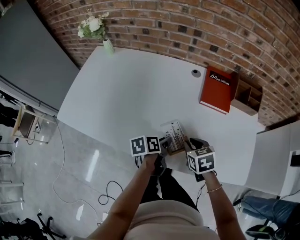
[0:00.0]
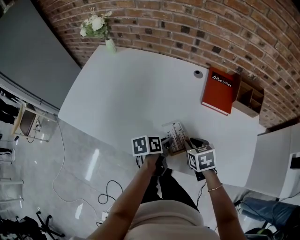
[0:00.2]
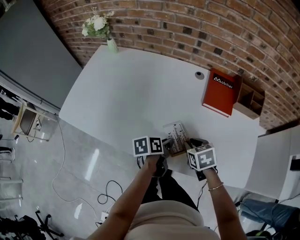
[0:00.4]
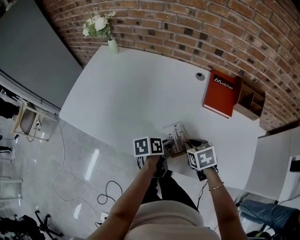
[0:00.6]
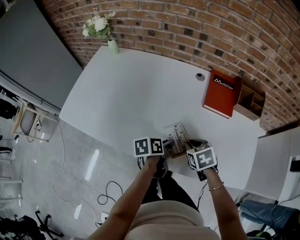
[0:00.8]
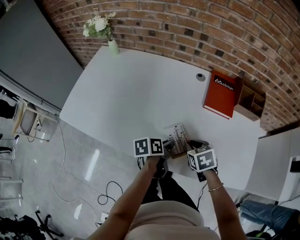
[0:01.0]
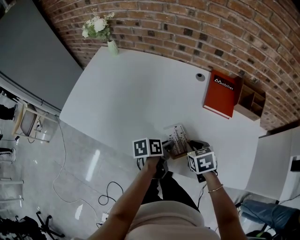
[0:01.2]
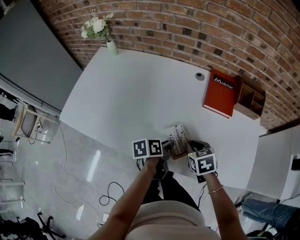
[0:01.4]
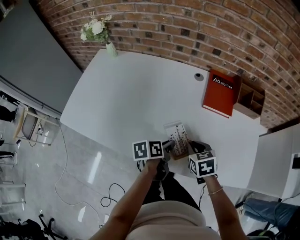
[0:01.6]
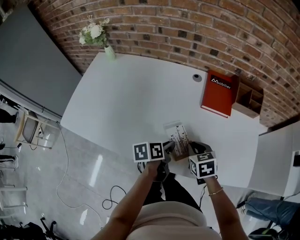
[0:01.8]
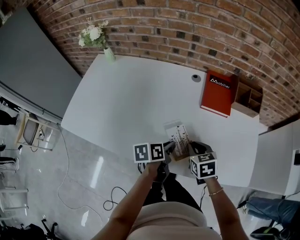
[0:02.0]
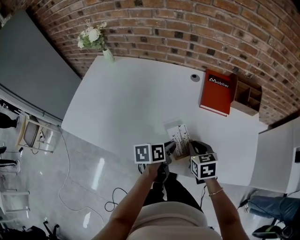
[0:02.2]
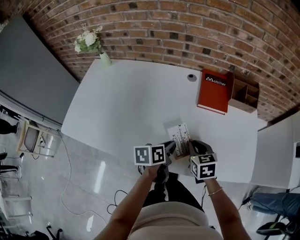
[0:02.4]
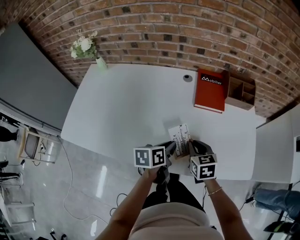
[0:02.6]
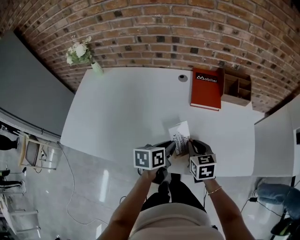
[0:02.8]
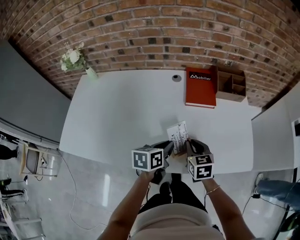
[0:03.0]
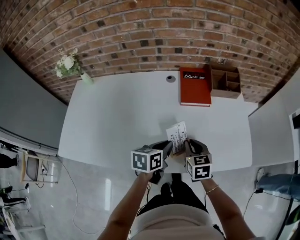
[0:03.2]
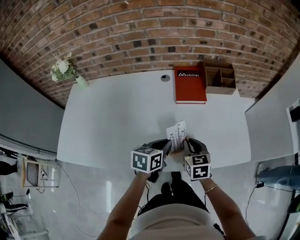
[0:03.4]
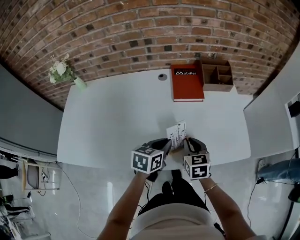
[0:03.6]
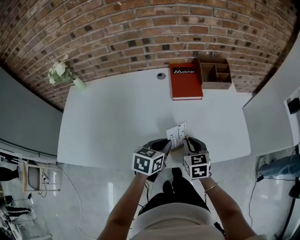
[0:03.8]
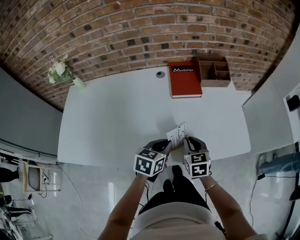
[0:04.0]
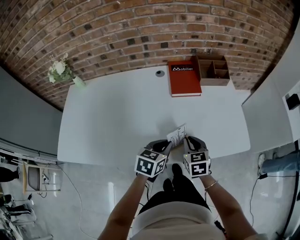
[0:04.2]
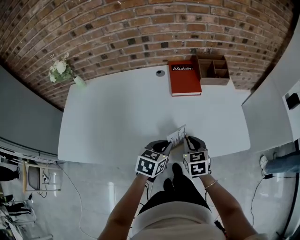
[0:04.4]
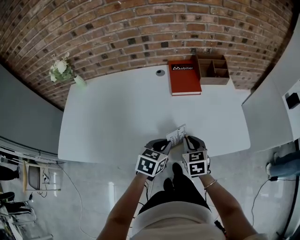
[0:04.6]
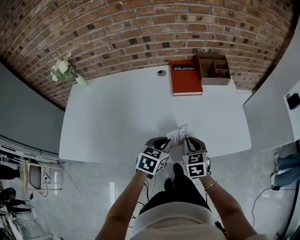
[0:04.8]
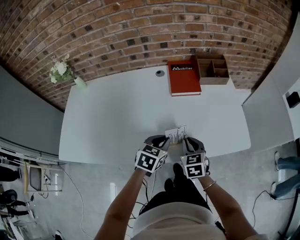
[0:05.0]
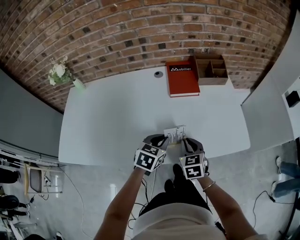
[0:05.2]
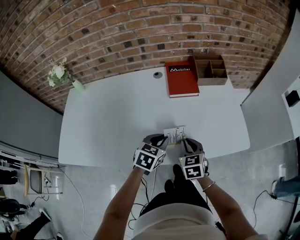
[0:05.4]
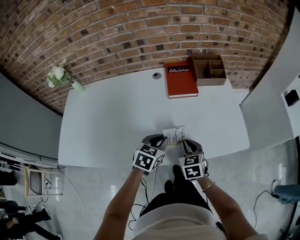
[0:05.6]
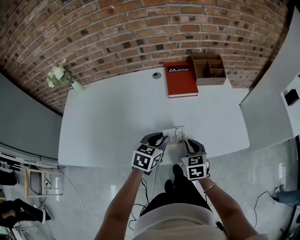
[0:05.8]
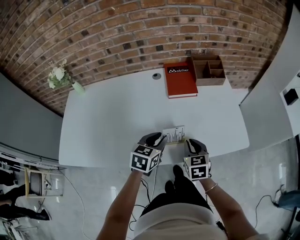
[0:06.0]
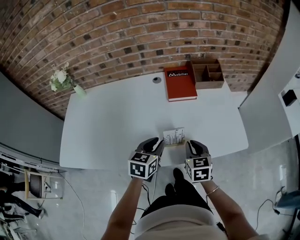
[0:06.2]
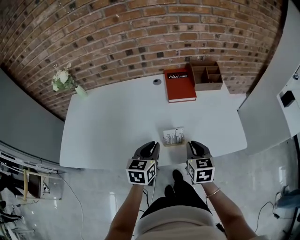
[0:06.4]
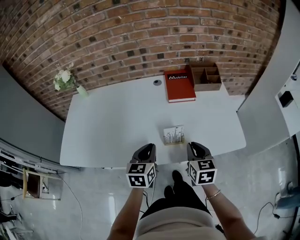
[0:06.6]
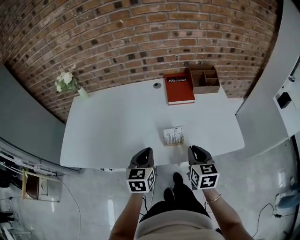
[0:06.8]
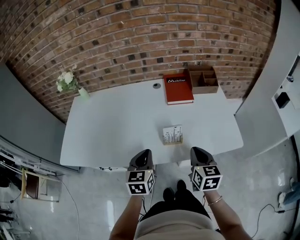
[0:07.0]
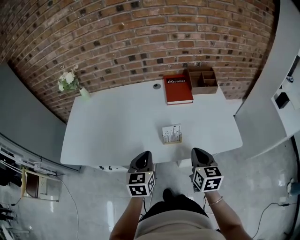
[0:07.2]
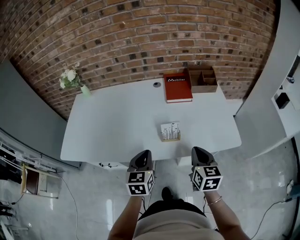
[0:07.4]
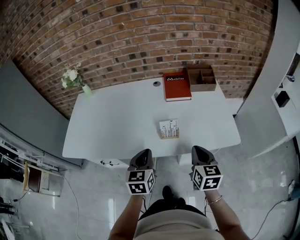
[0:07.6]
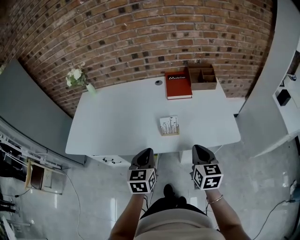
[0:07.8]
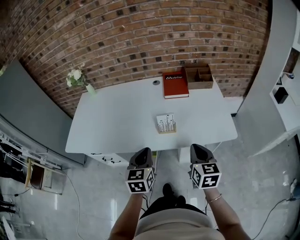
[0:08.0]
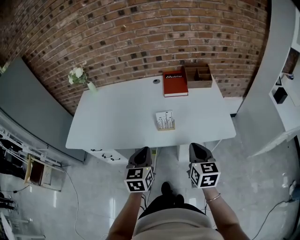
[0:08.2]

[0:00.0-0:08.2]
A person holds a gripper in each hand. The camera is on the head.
0:00.0 to 0:01.6: The grippers move only a little.
0:01.6 to 0:03.2: The left gripper moves upward and to the right, roughly 5 cm, and rotates approximately 40 degrees; the right gripper shifts by approximately 5 cm, and turns by some 30 degrees.
0:03.2 to 0:05.0: The right gripper ends up some 5 cm from where it was. The left gripper swivels roughly 30 degrees.
0:05.0 to 0:06.6: The right gripper is displaced upward by some 5 cm; the left gripper travels to the left and upward by approximately 10 cm, and swivels roughly 30 degrees.
0:06.6 to 0:08.2: The right gripper shifts some 15 cm backward and to the right. The left gripper is displaced backward by approximately 15 cm.

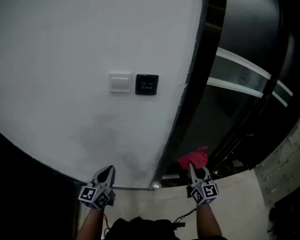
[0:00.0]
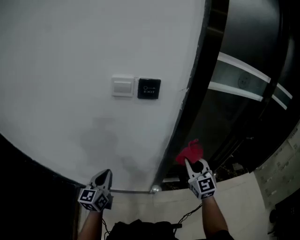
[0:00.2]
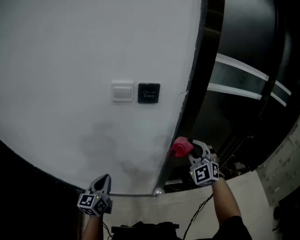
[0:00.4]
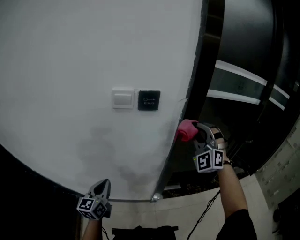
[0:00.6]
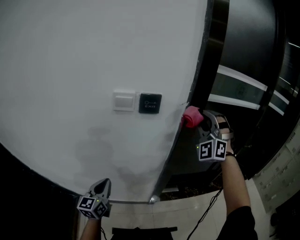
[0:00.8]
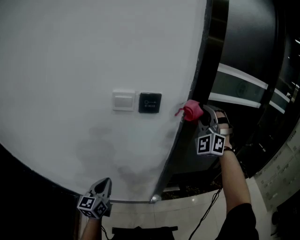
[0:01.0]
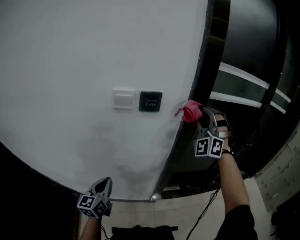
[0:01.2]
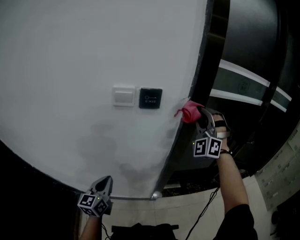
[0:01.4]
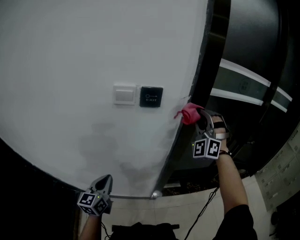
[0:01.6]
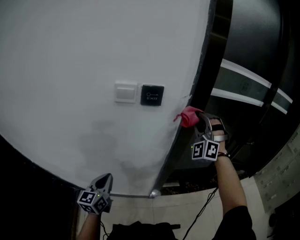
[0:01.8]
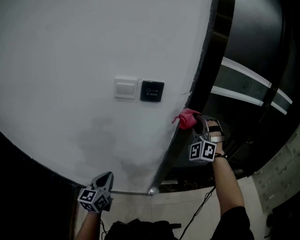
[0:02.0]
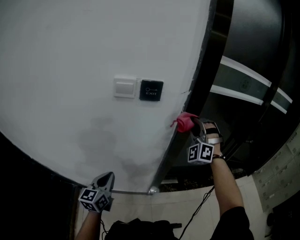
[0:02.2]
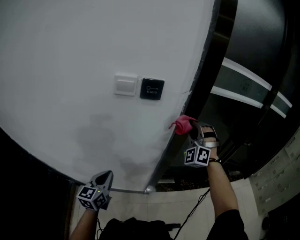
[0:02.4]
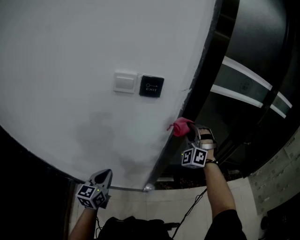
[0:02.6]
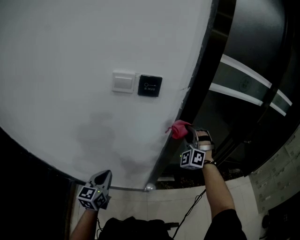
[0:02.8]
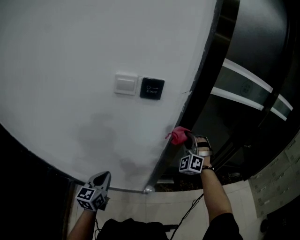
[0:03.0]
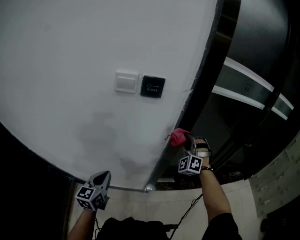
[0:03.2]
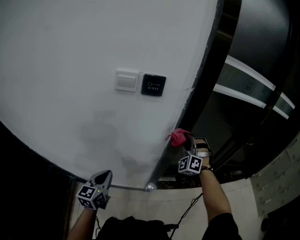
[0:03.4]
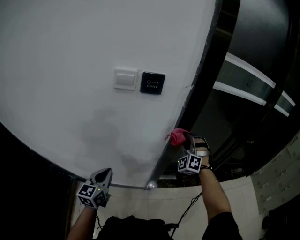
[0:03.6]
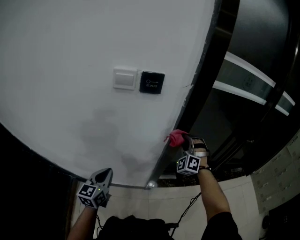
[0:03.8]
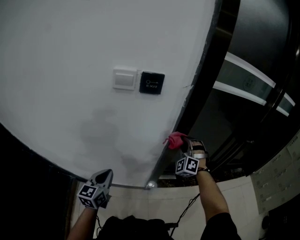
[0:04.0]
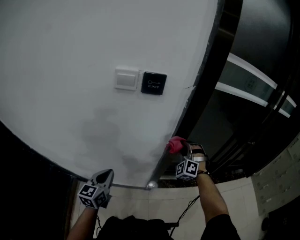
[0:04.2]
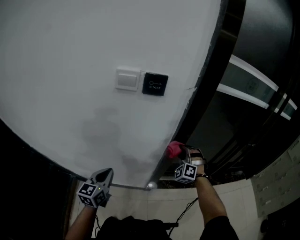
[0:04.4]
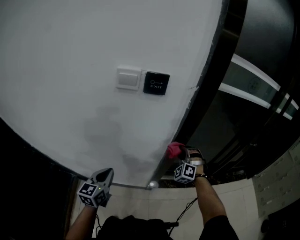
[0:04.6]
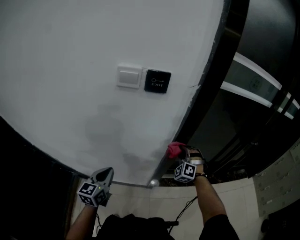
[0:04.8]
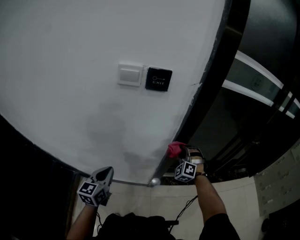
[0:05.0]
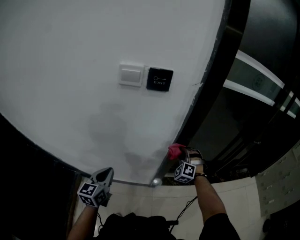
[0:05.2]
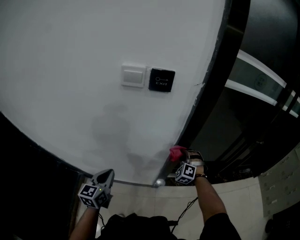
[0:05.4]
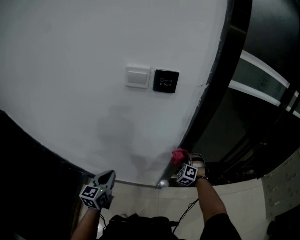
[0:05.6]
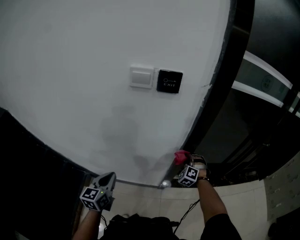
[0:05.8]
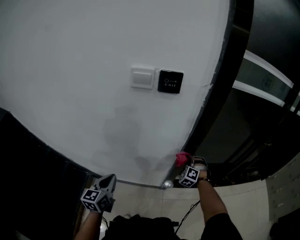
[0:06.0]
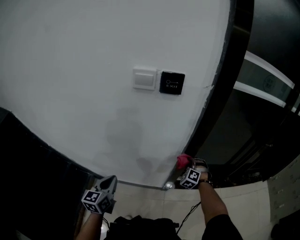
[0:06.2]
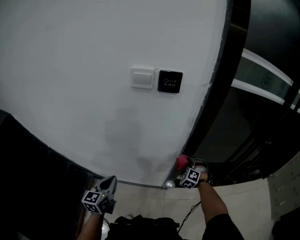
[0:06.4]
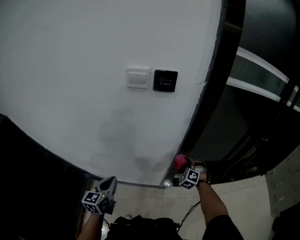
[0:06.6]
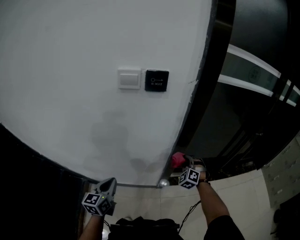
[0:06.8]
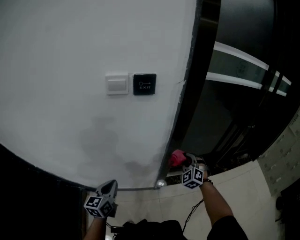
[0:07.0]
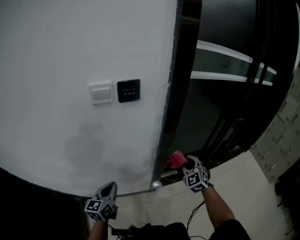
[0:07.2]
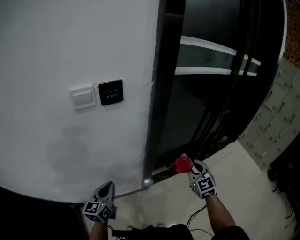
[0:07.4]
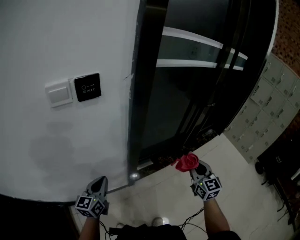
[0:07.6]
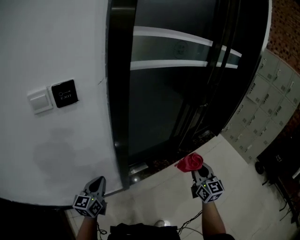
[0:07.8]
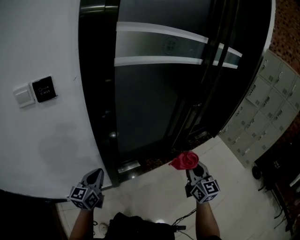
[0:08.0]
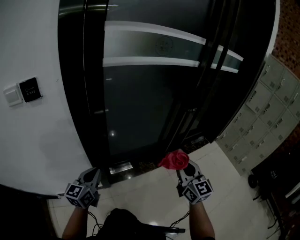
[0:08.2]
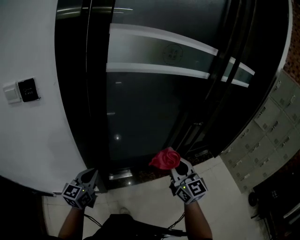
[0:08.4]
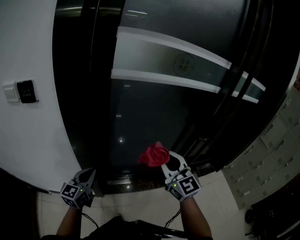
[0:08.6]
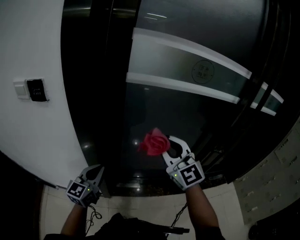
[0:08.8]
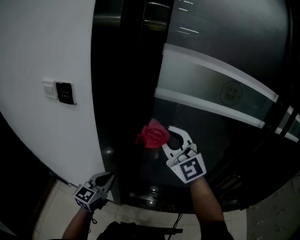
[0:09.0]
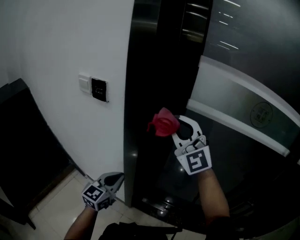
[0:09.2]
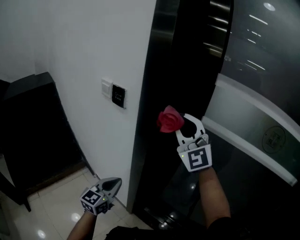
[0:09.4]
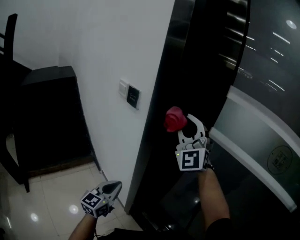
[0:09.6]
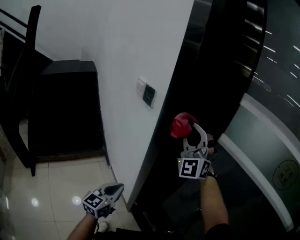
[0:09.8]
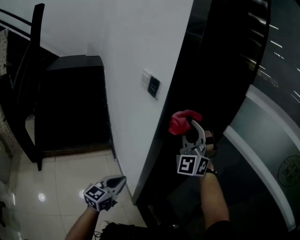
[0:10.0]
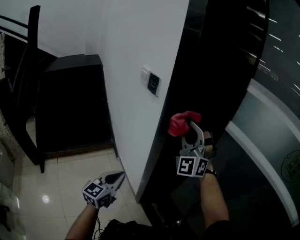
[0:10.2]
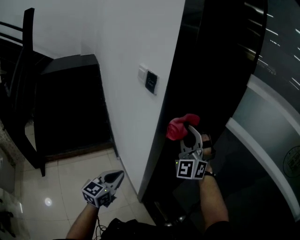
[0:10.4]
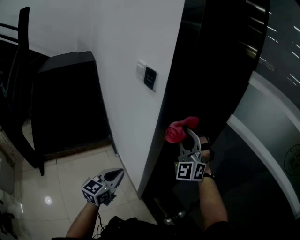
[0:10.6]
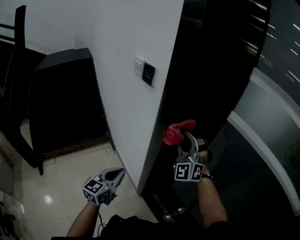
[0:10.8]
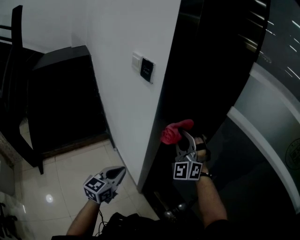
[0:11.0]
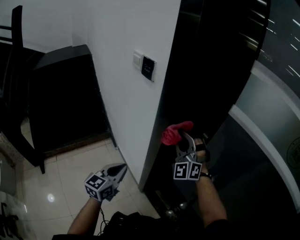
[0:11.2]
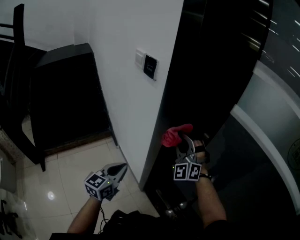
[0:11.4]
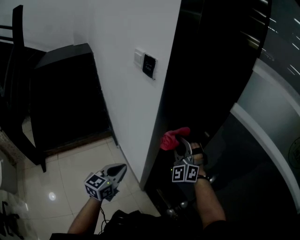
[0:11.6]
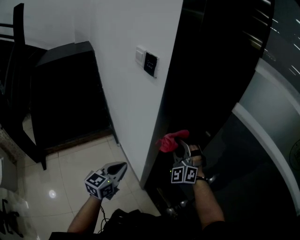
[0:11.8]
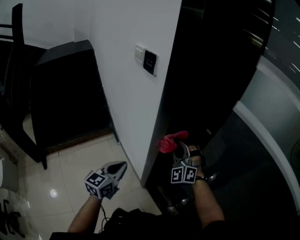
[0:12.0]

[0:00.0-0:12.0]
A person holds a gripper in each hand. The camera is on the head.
0:00.0 to 0:01.6: The right gripper is displaced upward and forward by roughly 25 cm, and twists some 80 degrees counterclockwise, seen from behind.
0:01.6 to 0:03.0: The right gripper travels downward by some 15 cm.
0:03.0 to 0:04.4: The right gripper goes about 10 cm downward.
0:04.4 to 0:06.0: The right gripper shifts about 10 cm downward, while the left gripper moves roughly 5 cm.
0:06.0 to 0:07.6: The left gripper travels to the right and forward by roughly 15 cm, and swivels about 30 degrees; the right gripper moves to the right, backward and upward, roughly 30 cm, and twists approximately 70 degrees clockwise, seen from behind.
0:07.6 to 0:09.0: The left gripper ends up about 30 cm from where it was, and changes its angle by roughly 20 degrees. Meanwhile the right gripper shifts by roughly 35 cm, and changes its angle by about 70 degrees.
0:09.0 to 0:10.4: The left gripper ends up about 10 cm from where it was, and rotates some 50 degrees. Meanwhile the right gripper reaches roughly 10 cm upward, then returns, and swivels about 40 degrees.
0:10.4 to 0:12.0: The right gripper is displaced downward by approximately 20 cm, and changes its angle by some 20 degrees.

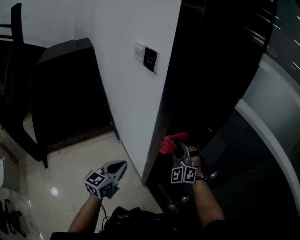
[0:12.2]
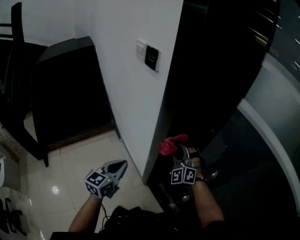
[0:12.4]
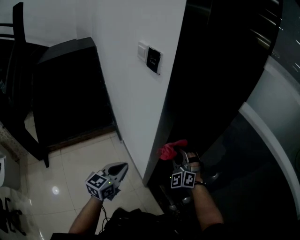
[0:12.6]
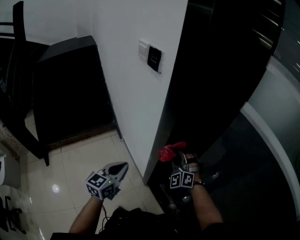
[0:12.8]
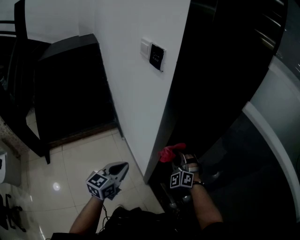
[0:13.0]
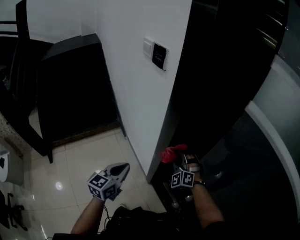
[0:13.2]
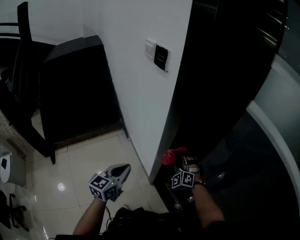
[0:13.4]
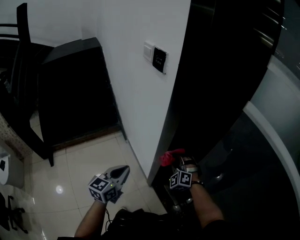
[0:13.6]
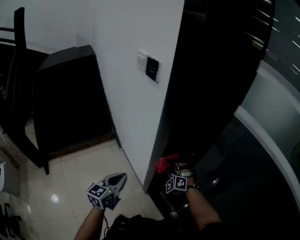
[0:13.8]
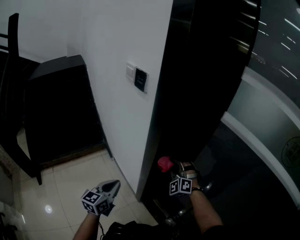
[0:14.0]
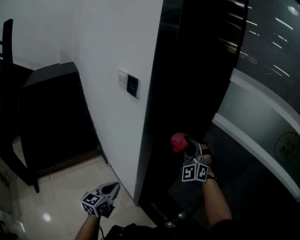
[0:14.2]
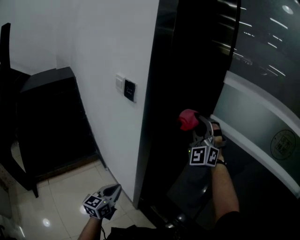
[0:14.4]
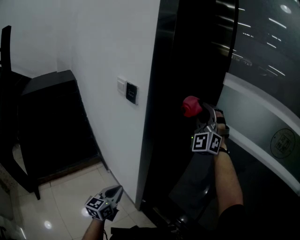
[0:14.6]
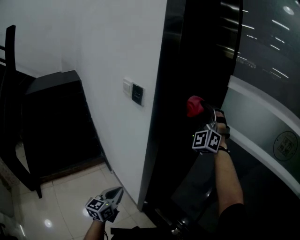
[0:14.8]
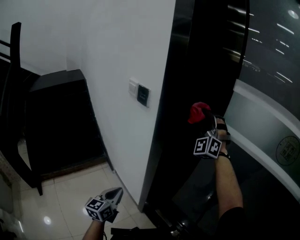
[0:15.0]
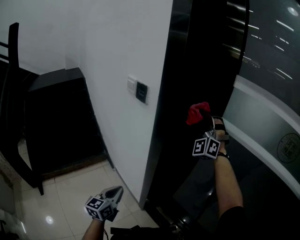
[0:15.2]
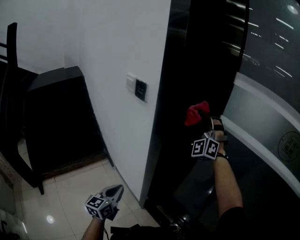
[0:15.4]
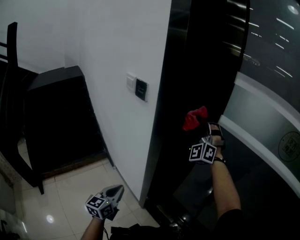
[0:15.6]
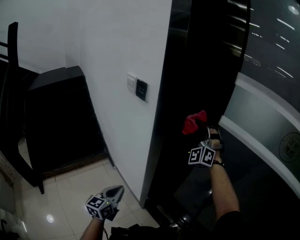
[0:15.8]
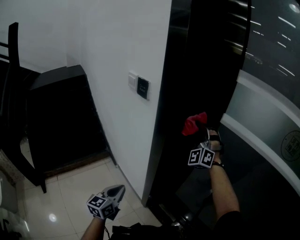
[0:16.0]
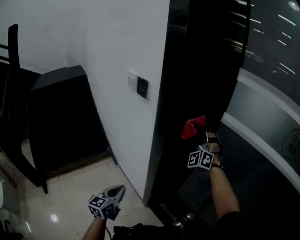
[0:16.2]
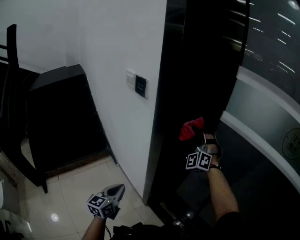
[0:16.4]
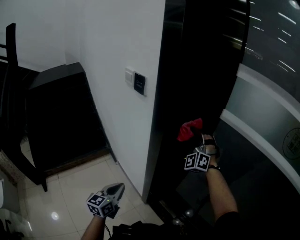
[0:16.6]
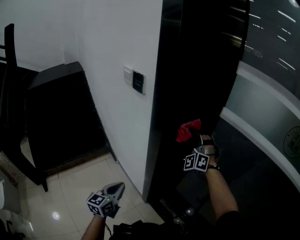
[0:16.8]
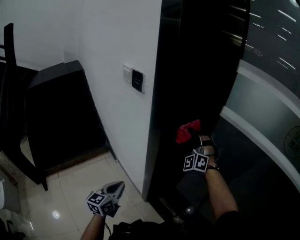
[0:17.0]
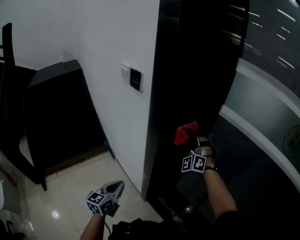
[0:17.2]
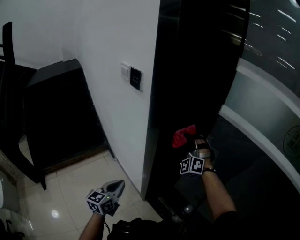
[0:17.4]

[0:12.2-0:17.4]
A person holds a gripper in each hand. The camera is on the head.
0:12.2 to 0:14.0: The right gripper reaches about 15 cm downward, then returns.
0:14.0 to 0:15.6: The right gripper is displaced upward by roughly 25 cm, and swivels some 30 degrees.
0:15.6 to 0:17.4: The right gripper is displaced downward by about 15 cm.
